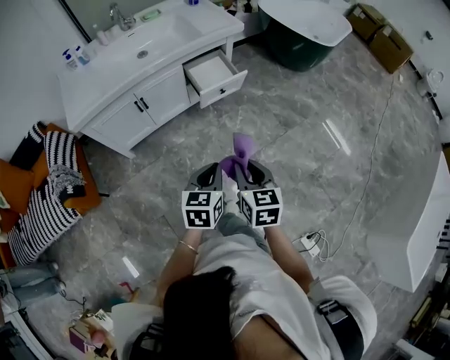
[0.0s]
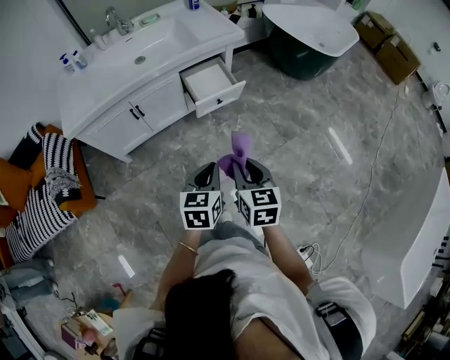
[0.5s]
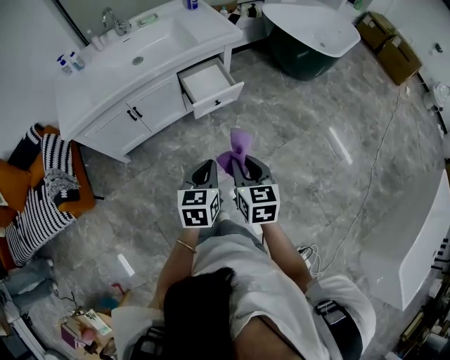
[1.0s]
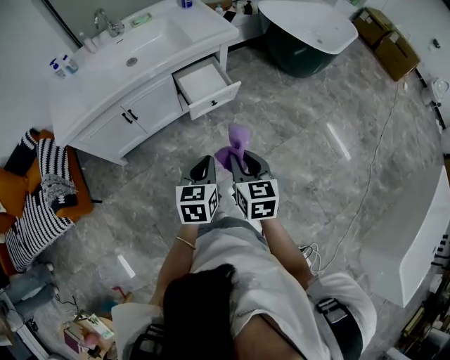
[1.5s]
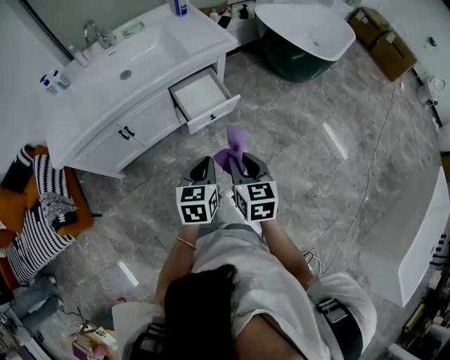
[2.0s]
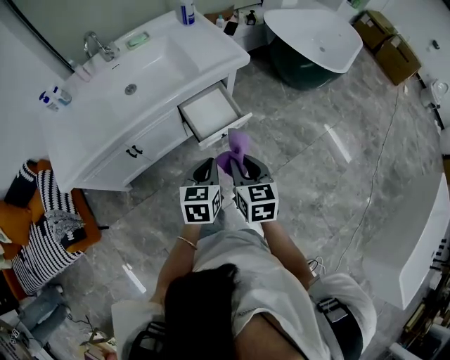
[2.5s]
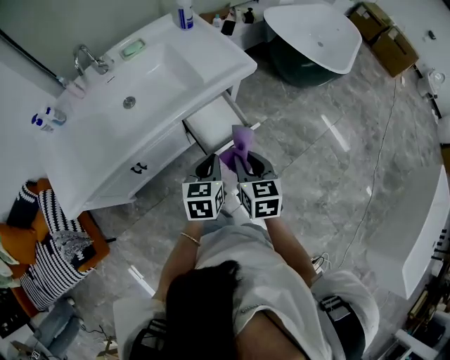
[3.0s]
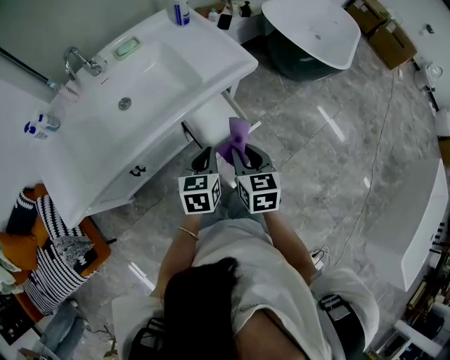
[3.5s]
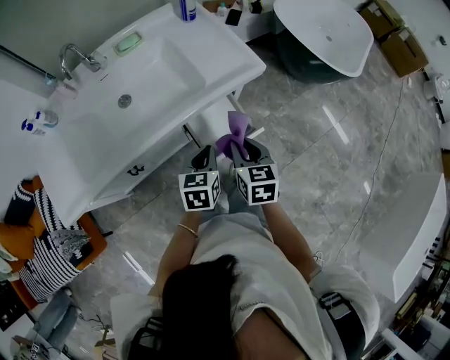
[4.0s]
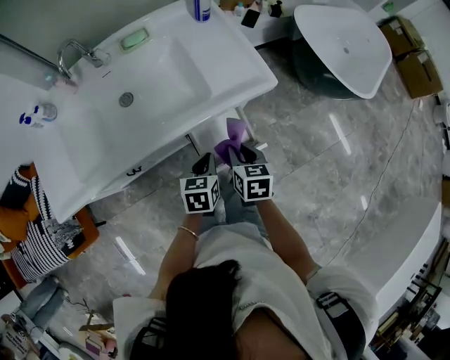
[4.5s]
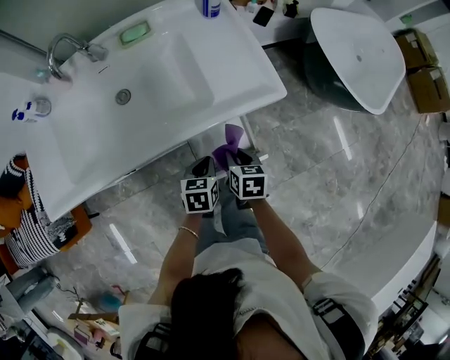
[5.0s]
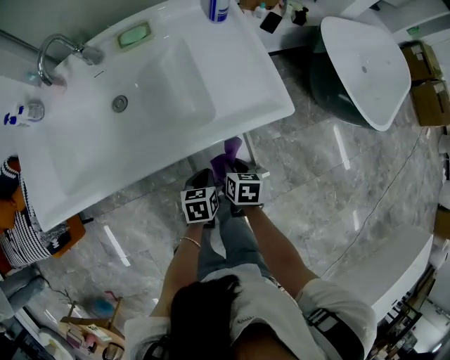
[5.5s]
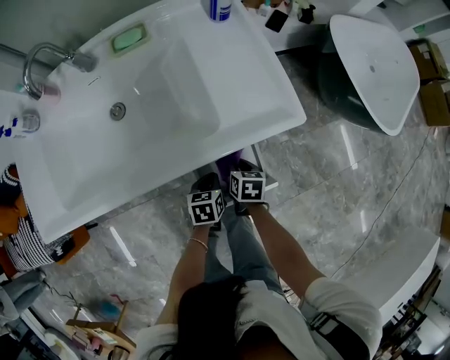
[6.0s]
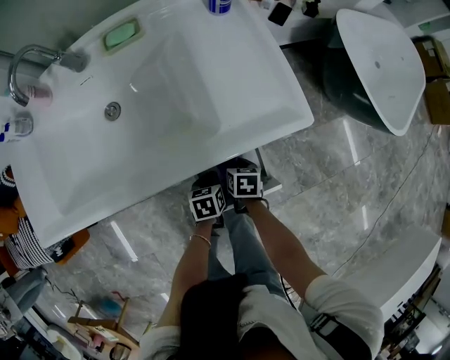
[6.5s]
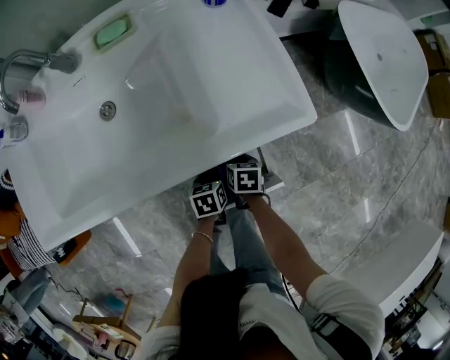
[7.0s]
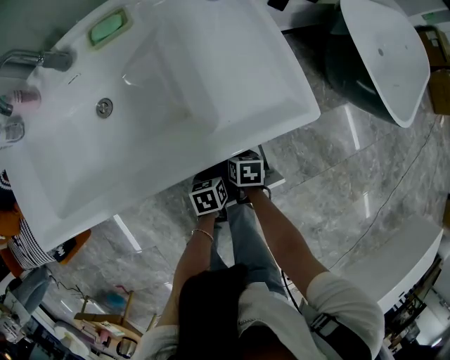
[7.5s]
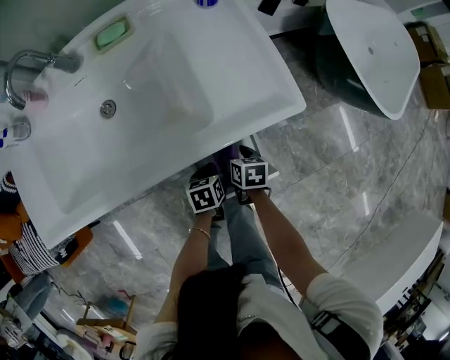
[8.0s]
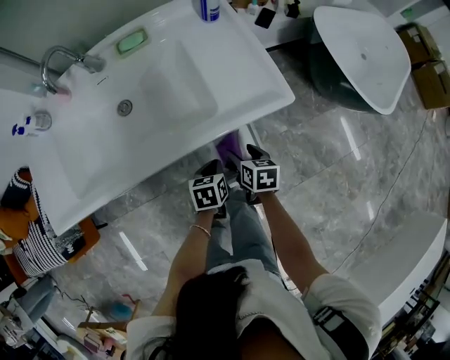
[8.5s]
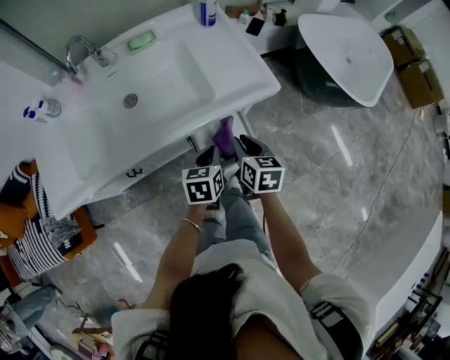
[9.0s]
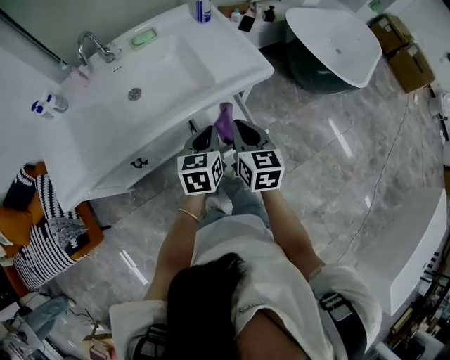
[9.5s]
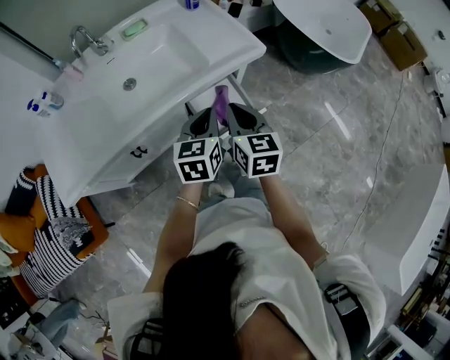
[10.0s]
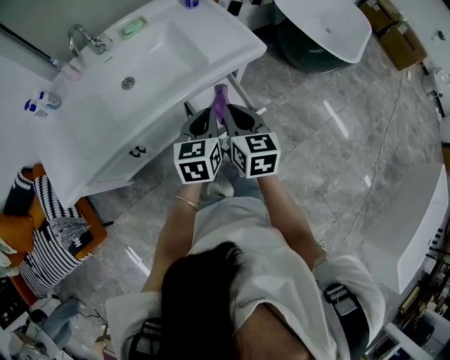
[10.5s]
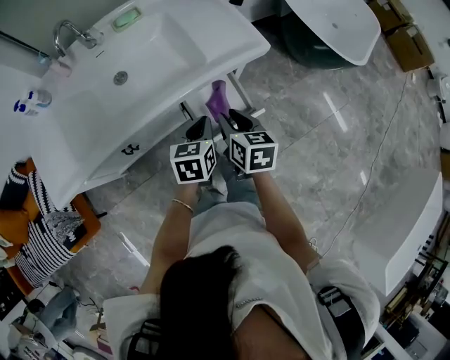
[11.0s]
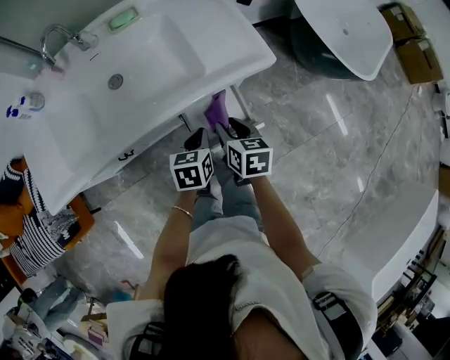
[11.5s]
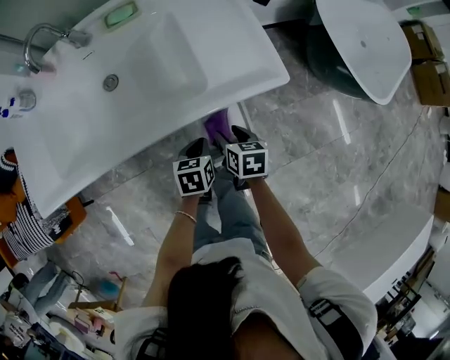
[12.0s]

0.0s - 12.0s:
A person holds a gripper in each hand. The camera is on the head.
0.0s - 2.0s: Both grippers move forward, about 20 cm.
2.0s - 4.0s: Both grippers move forward, some 30 cm.
4.0s - 6.0s: The two grippers go some 25 cm downward and forward. The right gripper changes its angle by roughly 30 degrees, while the left gripper changes its angle by roughly 30 degrees.
6.0s - 8.0s: The right gripper opens.
8.0s - 10.0s: The right gripper travels upward and backward by some 35 cm, tilts its fingers some 30 degrees upward, and closes its fingers. The left gripper is displaced upward by some 35 cm, and angles its fingers upward, by roughly 40 degrees.
10.0s - 12.0s: The right gripper moves downward and forward, some 25 cm, turns by about 40 degrees, and opens. The left gripper moves downward, about 20 cm, and swivels some 30 degrees.

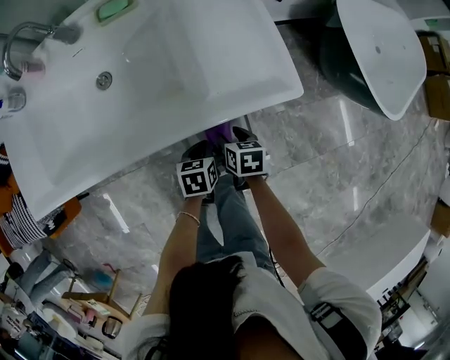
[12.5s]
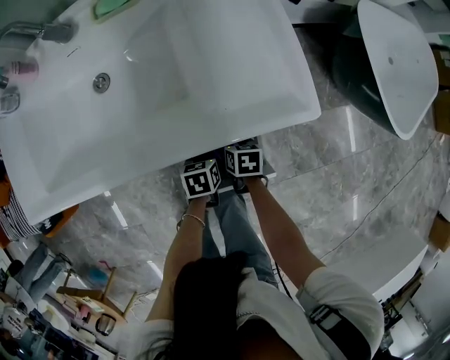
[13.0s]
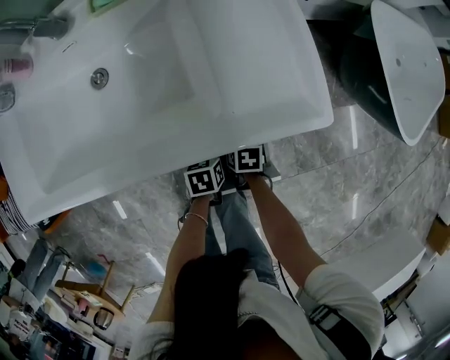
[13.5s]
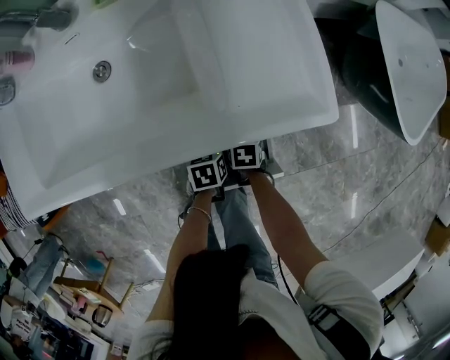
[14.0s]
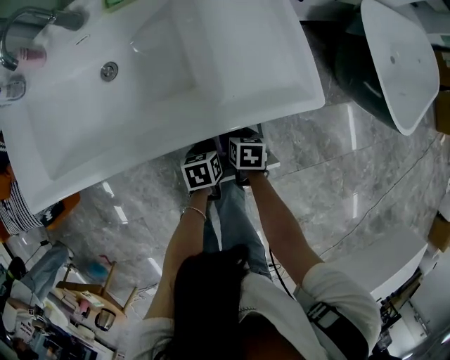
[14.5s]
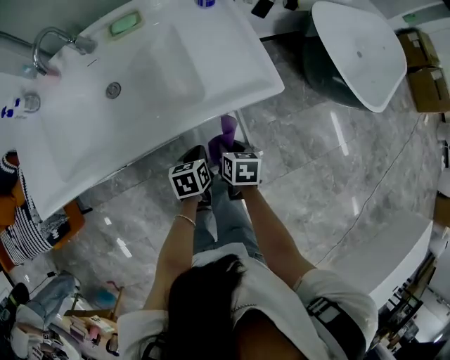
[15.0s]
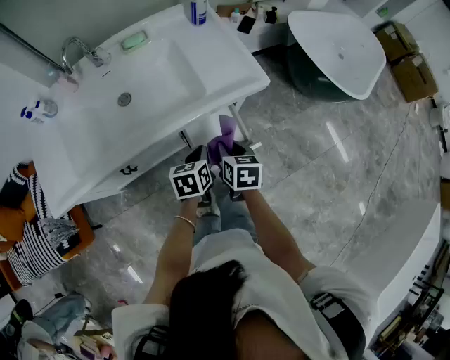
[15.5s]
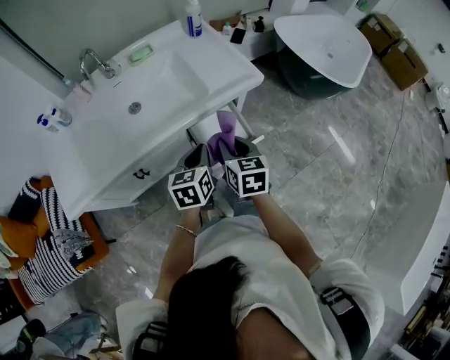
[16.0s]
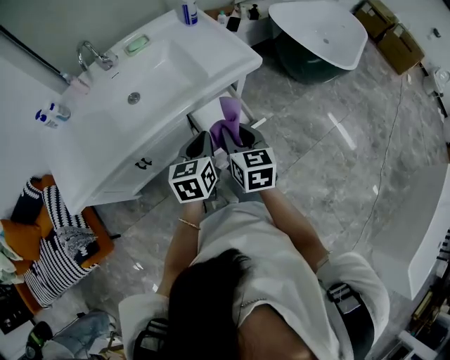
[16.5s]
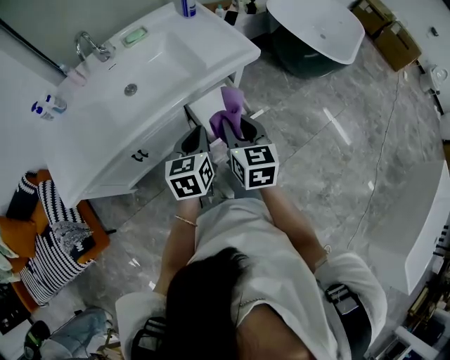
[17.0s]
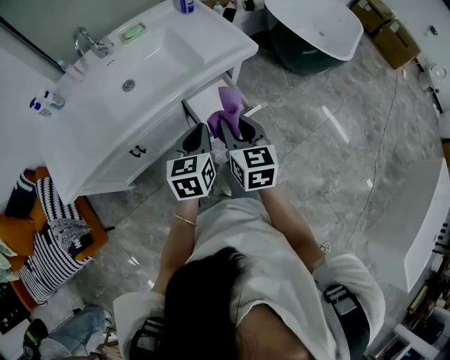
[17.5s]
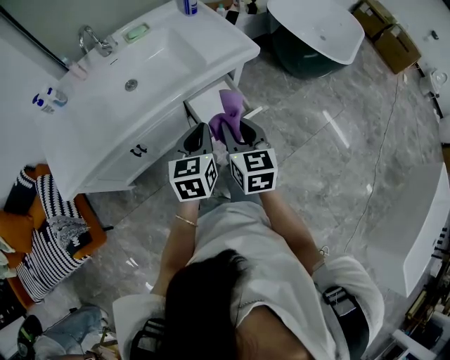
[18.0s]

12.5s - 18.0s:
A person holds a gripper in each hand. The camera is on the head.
12.5s - 14.5s: The right gripper is displaced downward by some 5 cm, and closes.
14.5s - 16.0s: The left gripper travels upward by about 30 cm, and angles its fingers upward, by roughly 30 degrees. The right gripper travels upward and backward by approximately 35 cm, and tilts its fingers some 30 degrees upward.
16.0s - 18.0s: The two grippers go roughly 5 cm backward.

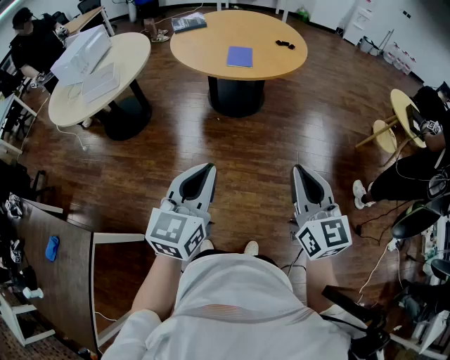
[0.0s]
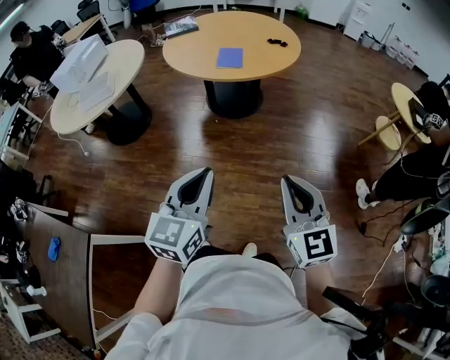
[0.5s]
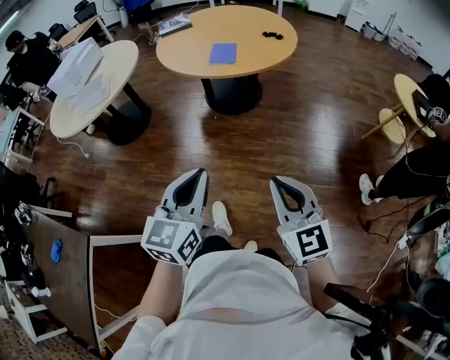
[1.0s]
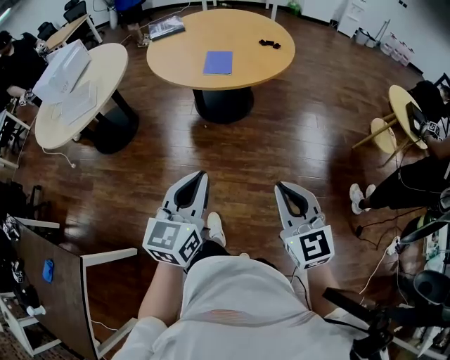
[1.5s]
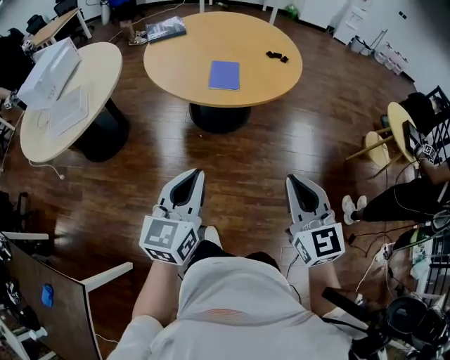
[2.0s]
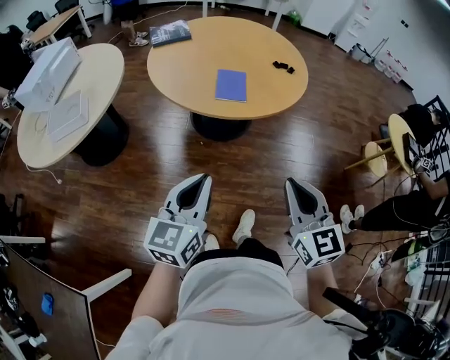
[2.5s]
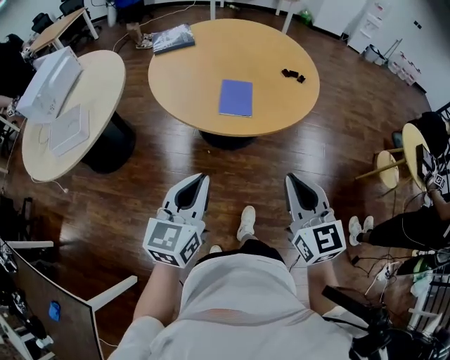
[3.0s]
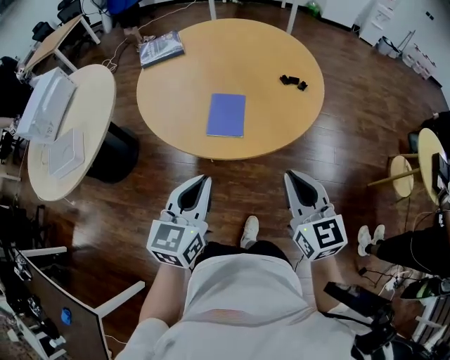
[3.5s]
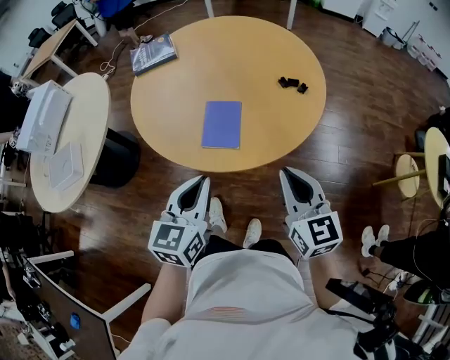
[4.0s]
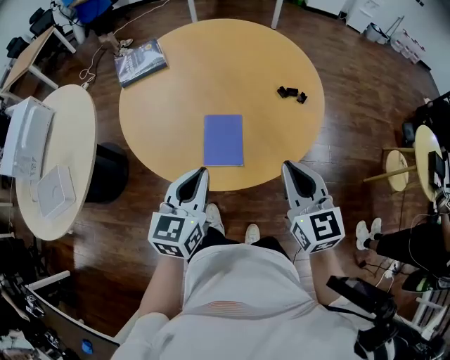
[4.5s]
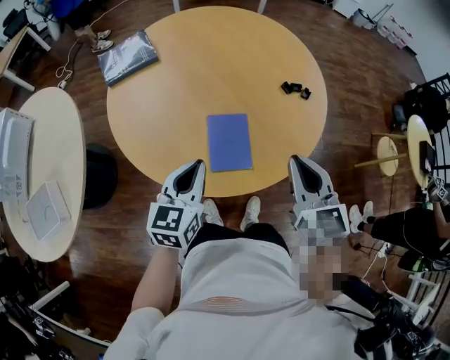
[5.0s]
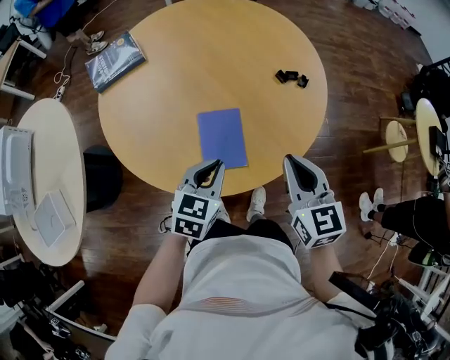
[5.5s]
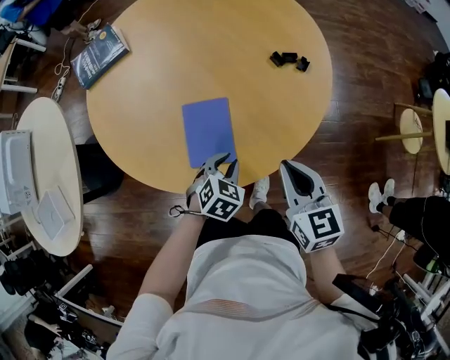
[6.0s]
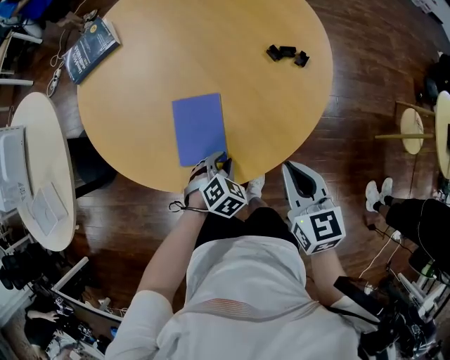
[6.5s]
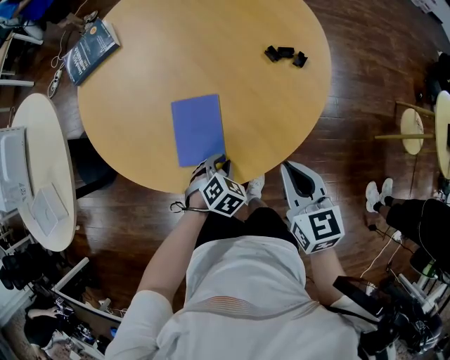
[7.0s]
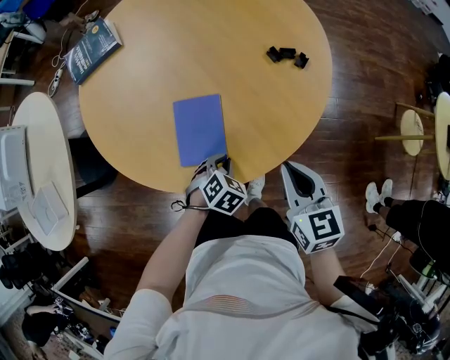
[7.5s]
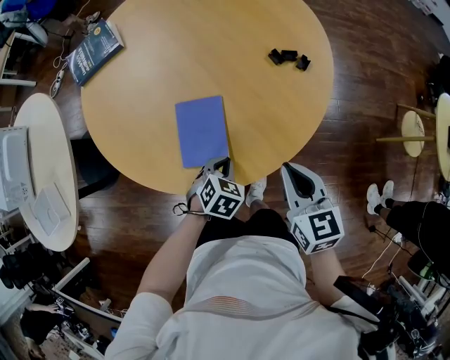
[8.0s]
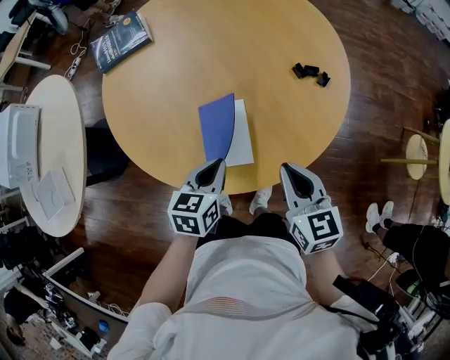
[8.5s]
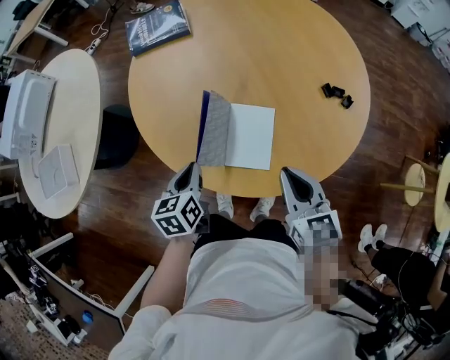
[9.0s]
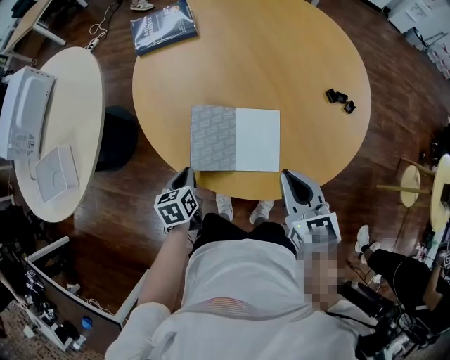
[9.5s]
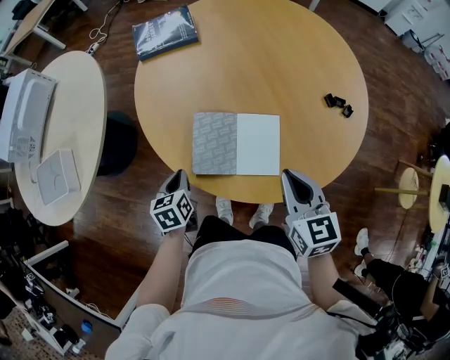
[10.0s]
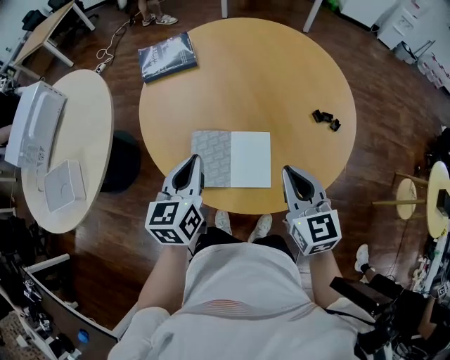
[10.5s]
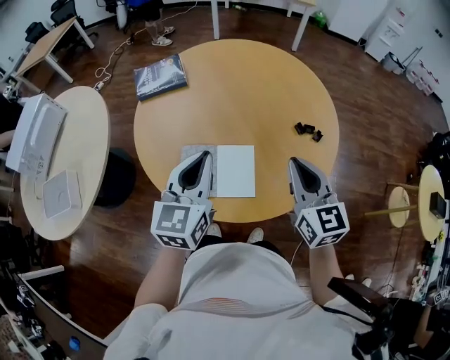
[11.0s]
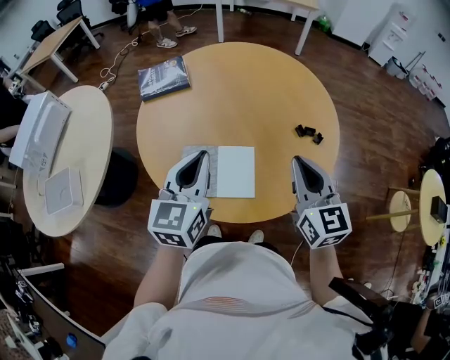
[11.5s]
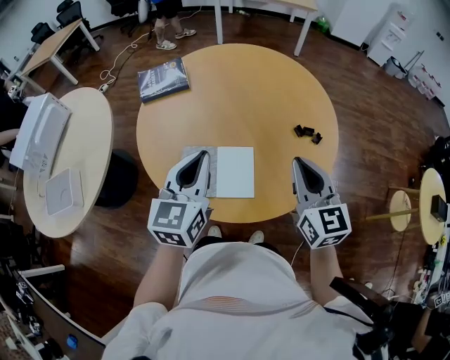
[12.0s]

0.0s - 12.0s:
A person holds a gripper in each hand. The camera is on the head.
0.0s - 2.0s: Both grippers move forward, approximately 25 cm.
2.0s - 4.0s: Both grippers move forward, roughly 40 cm.
4.0s - 6.0s: The left gripper moves downward and forward, about 30 cm, and angles its fingers downward, by about 40 degrees. Meanwhile the right gripper moves forward and downward, roughly 20 cm.
6.0s - 8.0s: The grippers make only small movements.
8.0s - 10.0s: The right gripper moves to the left, about 15 cm. Meanwhile the left gripper is displaced to the left by roughly 30 cm, and rotates around the line of its fingers by approximately 50 degrees, counterclockwise from behind.
10.0s - 12.0s: The left gripper moves upward and to the right, approximately 35 cm, and points its fingers about 30 degrees further upward. Meanwhile the right gripper shifts approximately 15 cm upward and to the right.
